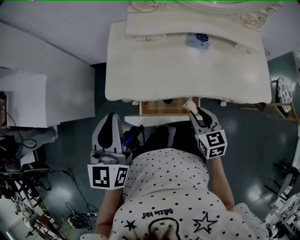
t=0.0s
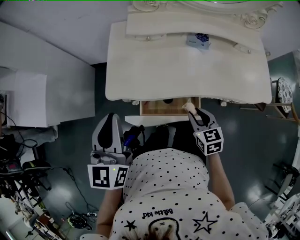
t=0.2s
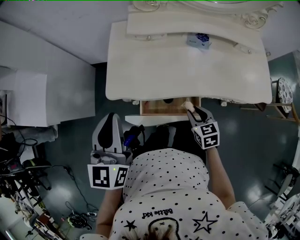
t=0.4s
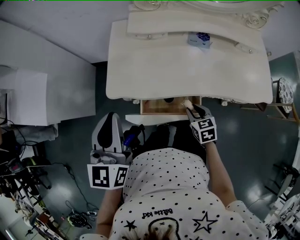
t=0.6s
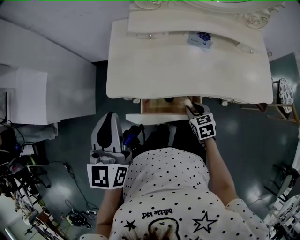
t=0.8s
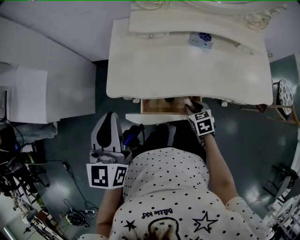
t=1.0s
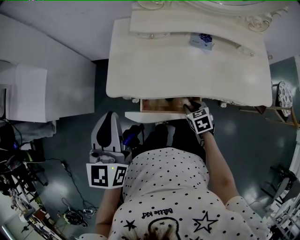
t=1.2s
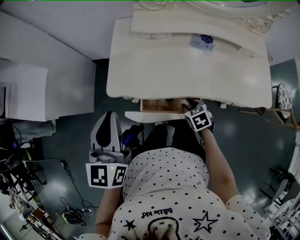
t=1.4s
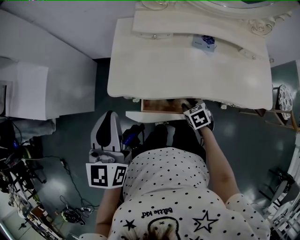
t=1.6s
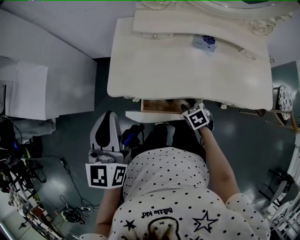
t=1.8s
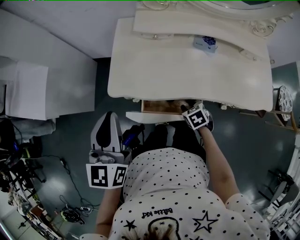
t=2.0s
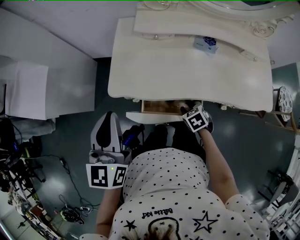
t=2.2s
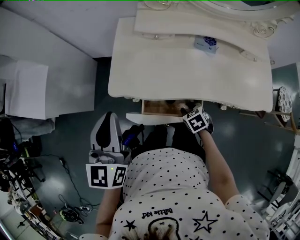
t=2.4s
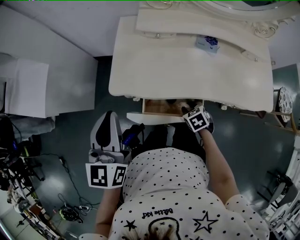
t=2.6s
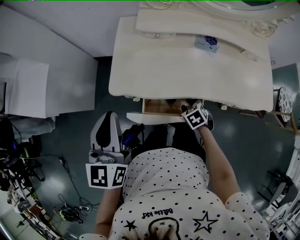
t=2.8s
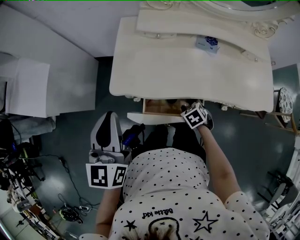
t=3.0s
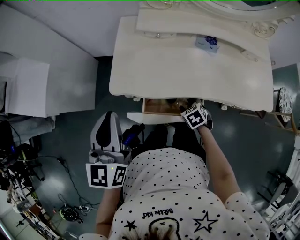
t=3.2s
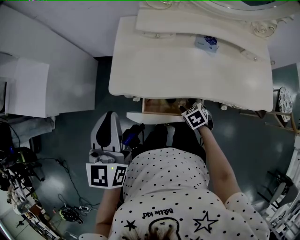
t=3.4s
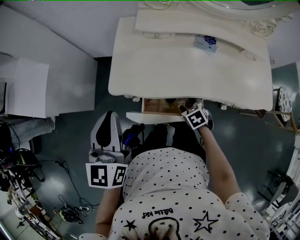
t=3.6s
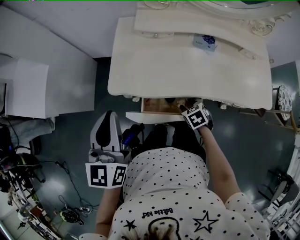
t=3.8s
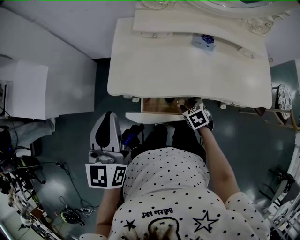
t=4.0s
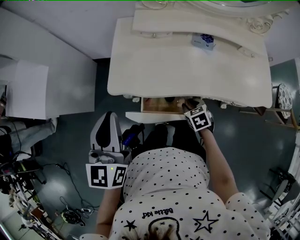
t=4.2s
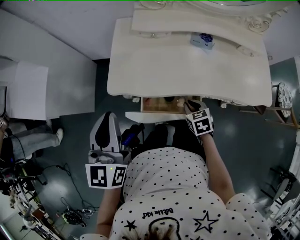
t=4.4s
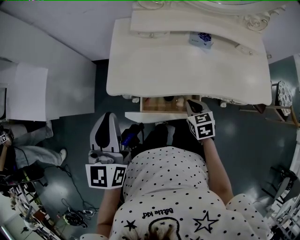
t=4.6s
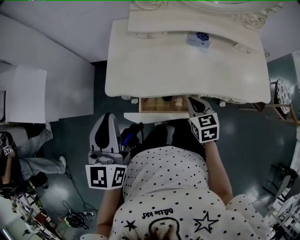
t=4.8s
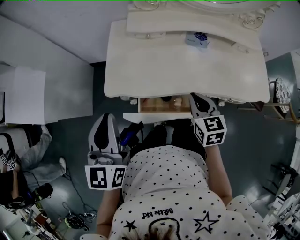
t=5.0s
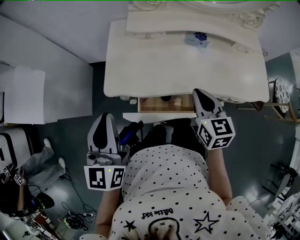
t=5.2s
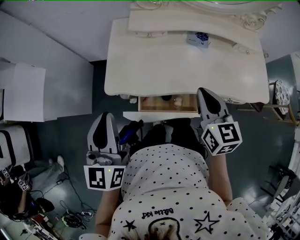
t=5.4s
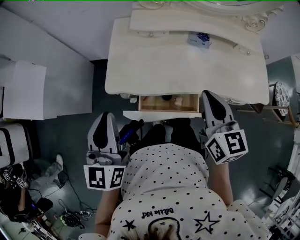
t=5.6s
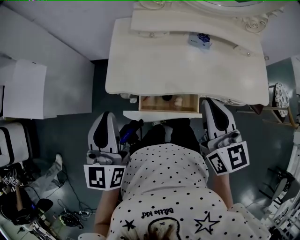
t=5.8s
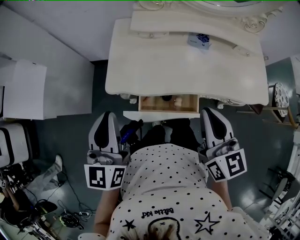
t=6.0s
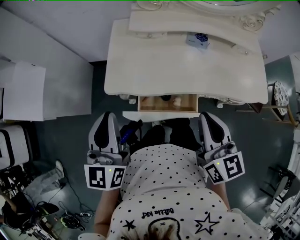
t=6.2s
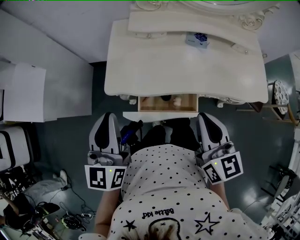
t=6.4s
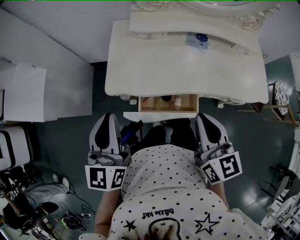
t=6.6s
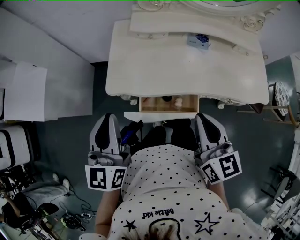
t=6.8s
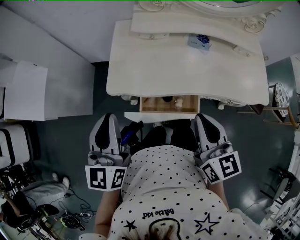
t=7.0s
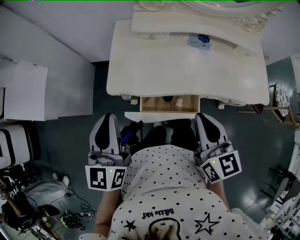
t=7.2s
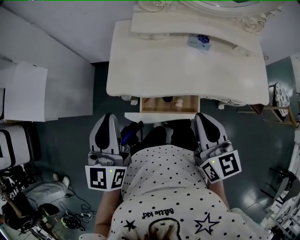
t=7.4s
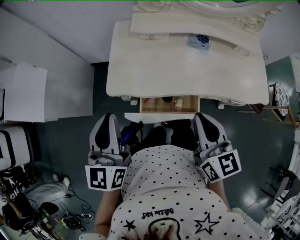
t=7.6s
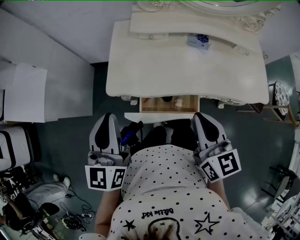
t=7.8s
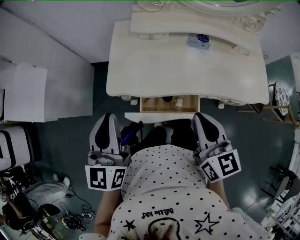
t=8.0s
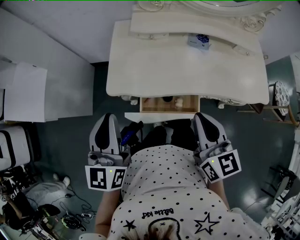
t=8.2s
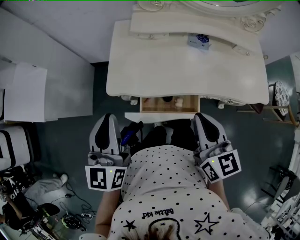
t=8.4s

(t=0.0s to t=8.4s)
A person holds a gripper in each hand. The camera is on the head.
t=0.0s - t=1.4s: The right gripper goes about 10 cm downward, and rotates approximately 30 degrees.
t=1.4s - t=4.2s: The grippers stay close to where they were, moving slightly.
t=4.2s - t=5.6s: The right gripper shifts approximately 30 cm upward, points its fingers about 40 degrees further upward, and closes its fingers.
t=5.6s - t=7.0s: The right gripper travels backward by roughly 5 cm.
t=7.0s - t=8.4s: Both grippers stay put.

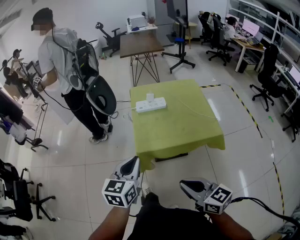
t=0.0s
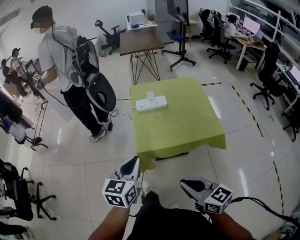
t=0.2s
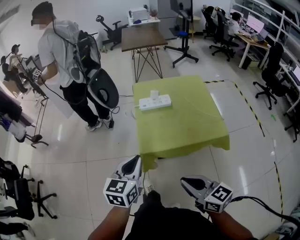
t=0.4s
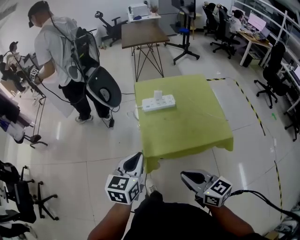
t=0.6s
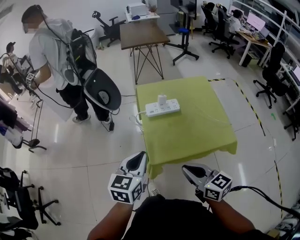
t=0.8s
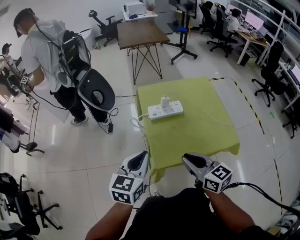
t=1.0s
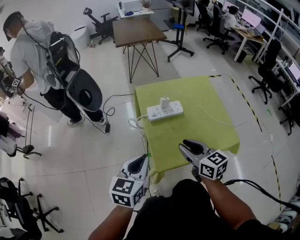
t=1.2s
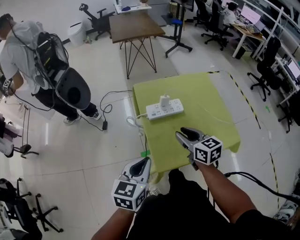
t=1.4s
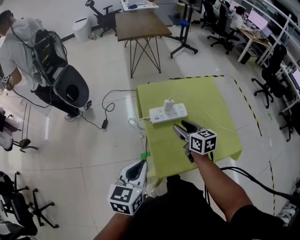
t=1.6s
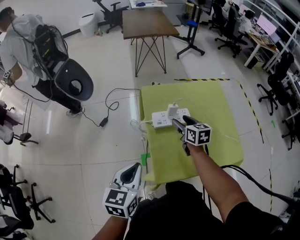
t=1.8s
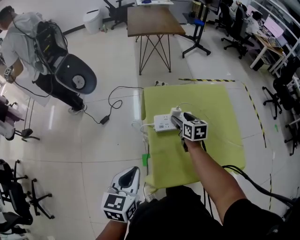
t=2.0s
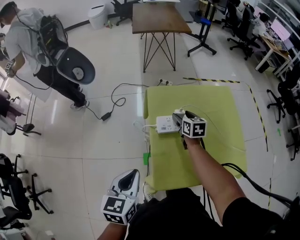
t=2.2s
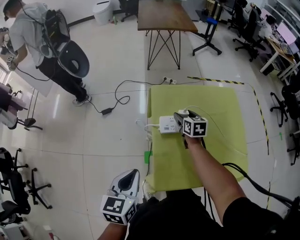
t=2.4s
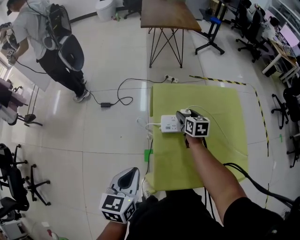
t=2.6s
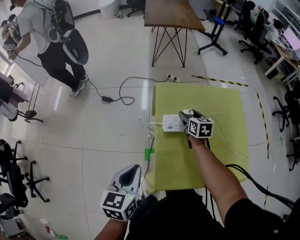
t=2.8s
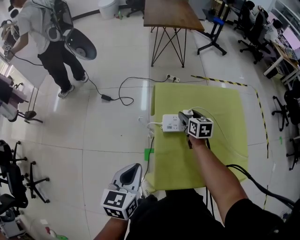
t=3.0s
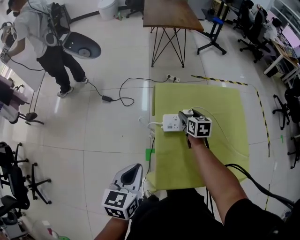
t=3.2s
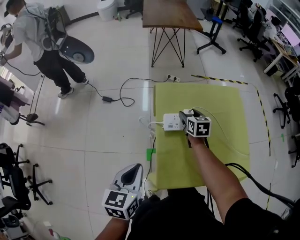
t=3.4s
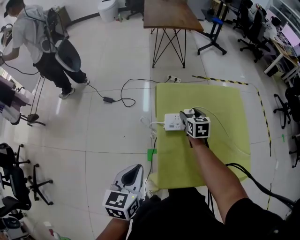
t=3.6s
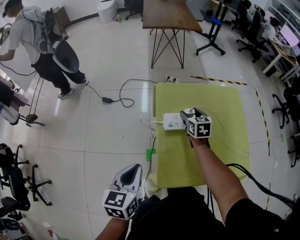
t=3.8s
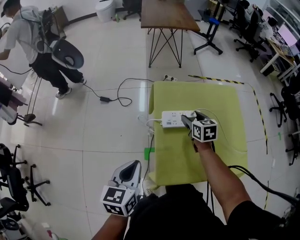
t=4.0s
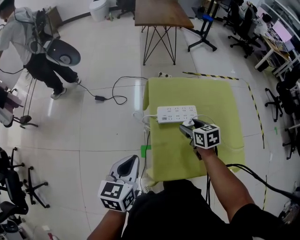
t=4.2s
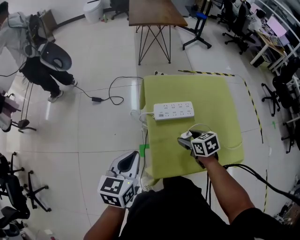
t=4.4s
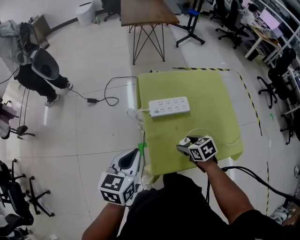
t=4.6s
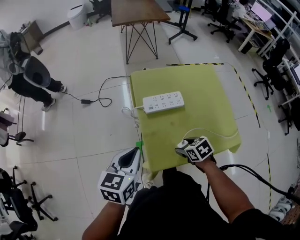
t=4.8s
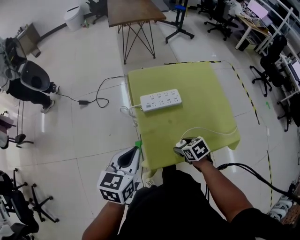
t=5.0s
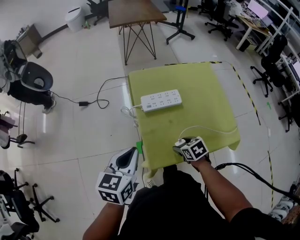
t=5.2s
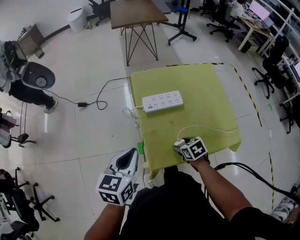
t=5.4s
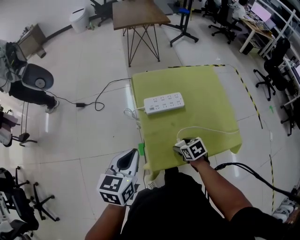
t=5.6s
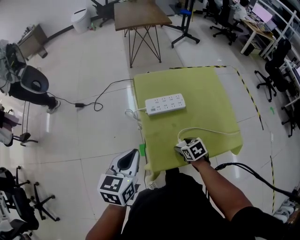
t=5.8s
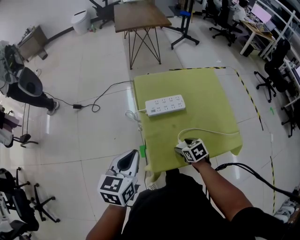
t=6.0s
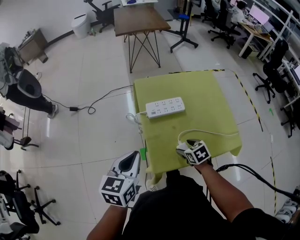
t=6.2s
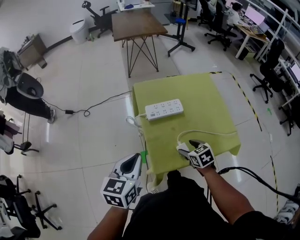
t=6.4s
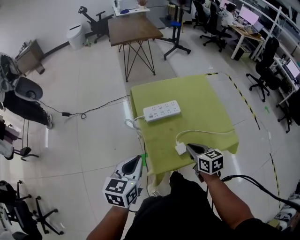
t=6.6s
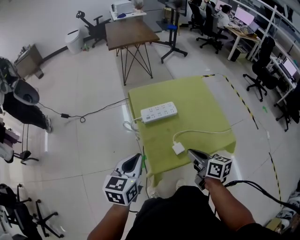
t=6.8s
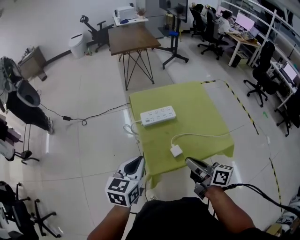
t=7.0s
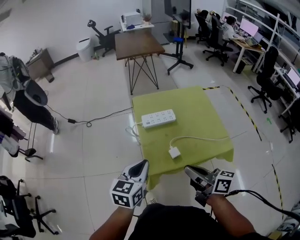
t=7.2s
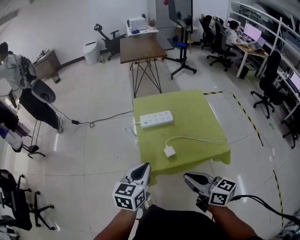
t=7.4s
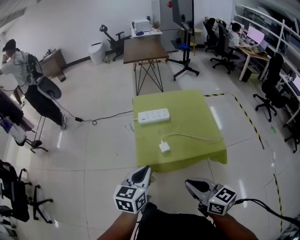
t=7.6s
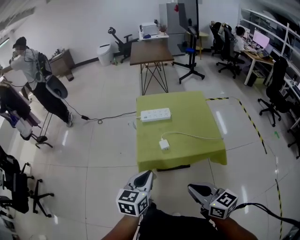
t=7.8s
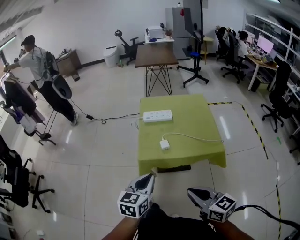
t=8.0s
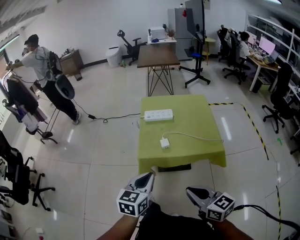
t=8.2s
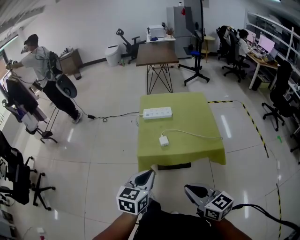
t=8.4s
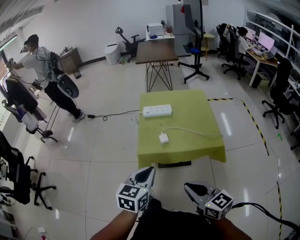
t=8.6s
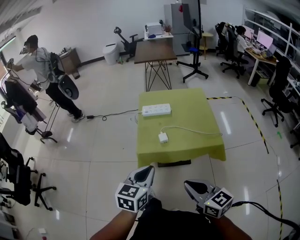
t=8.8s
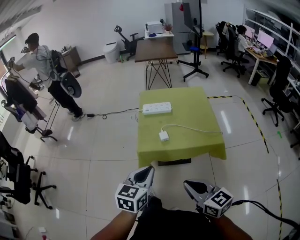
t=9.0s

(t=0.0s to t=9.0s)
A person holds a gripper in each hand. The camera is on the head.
t=0.0s - t=1.6s: The right gripper moves forward, roughly 50 cm, turns by approximately 20 degrees, and opens its fingers, while the left gripper goes about 20 cm forward.
t=1.6s - t=3.0s: The right gripper heads forward and downward, covering approximately 20 cm, while the left gripper travels forward by some 5 cm.
t=3.0s - t=4.4s: The right gripper goes roughly 20 cm backward, and swivels roughly 20 degrees.
t=4.4s - t=6.0s: The right gripper travels backward and downward by some 10 cm.
t=6.0s - t=7.6s: The right gripper goes some 40 cm upward and backward, points its fingers approximately 40 degrees further upward, and closes. The left gripper goes approximately 25 cm backward and to the right.
t=7.6s - t=9.0s: Both grippers travel together backward, roughly 10 cm.

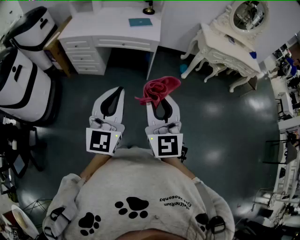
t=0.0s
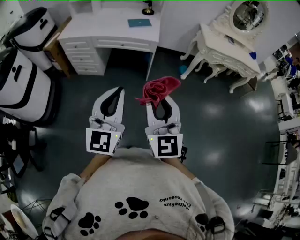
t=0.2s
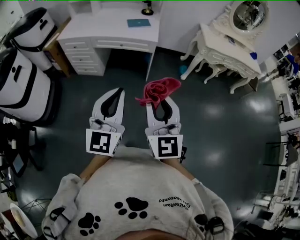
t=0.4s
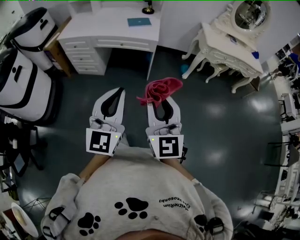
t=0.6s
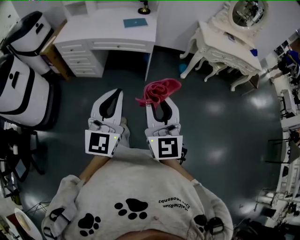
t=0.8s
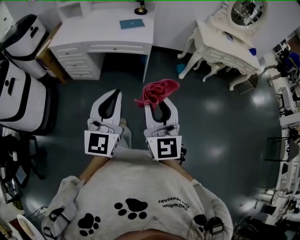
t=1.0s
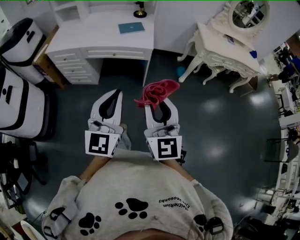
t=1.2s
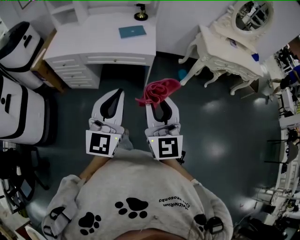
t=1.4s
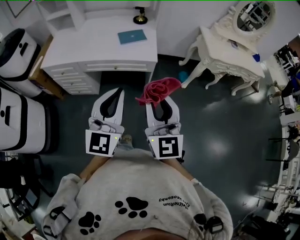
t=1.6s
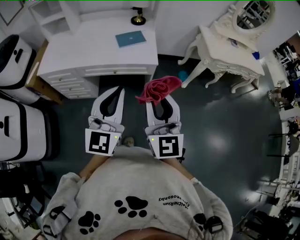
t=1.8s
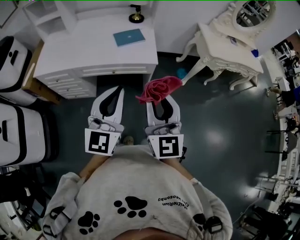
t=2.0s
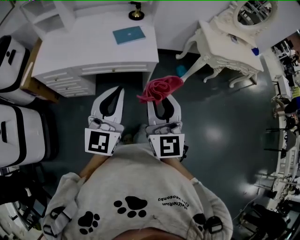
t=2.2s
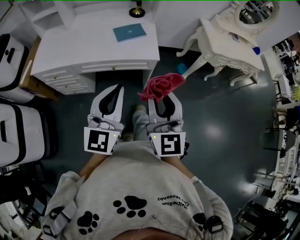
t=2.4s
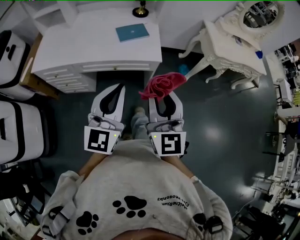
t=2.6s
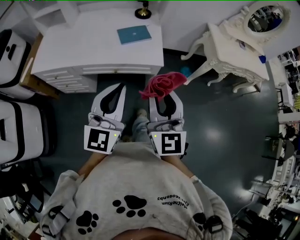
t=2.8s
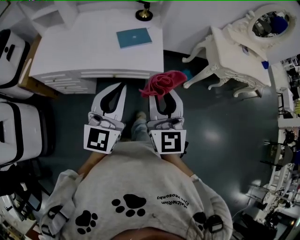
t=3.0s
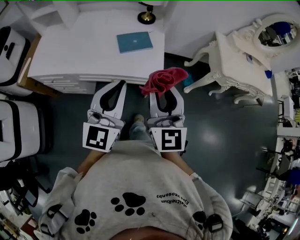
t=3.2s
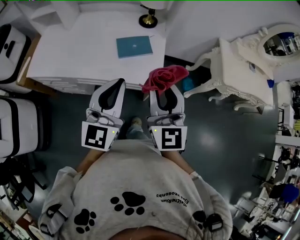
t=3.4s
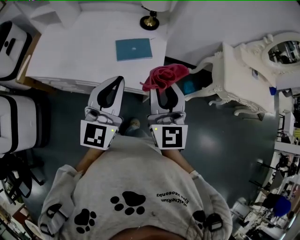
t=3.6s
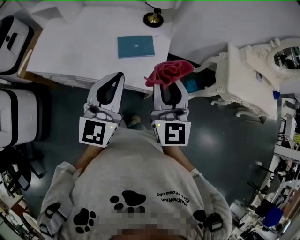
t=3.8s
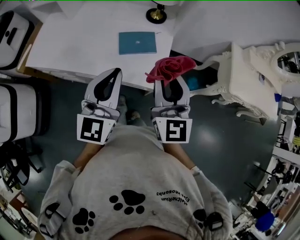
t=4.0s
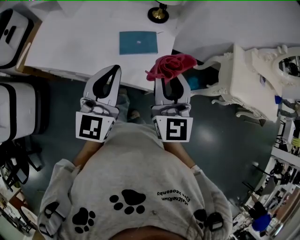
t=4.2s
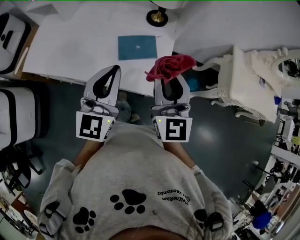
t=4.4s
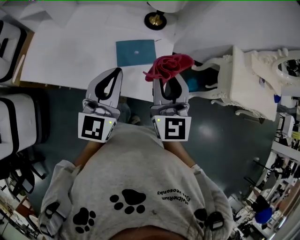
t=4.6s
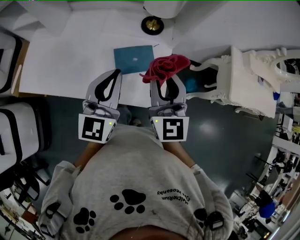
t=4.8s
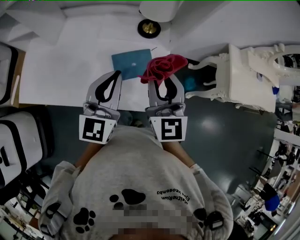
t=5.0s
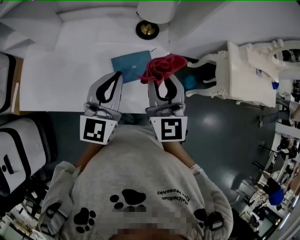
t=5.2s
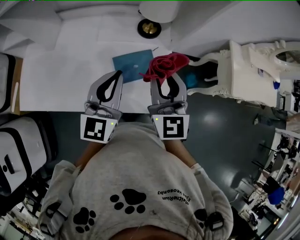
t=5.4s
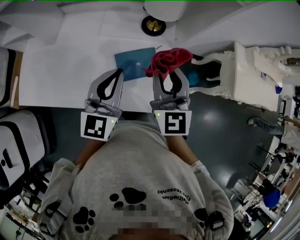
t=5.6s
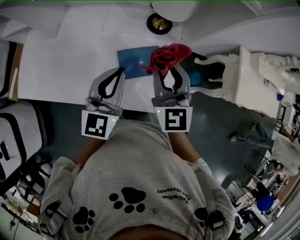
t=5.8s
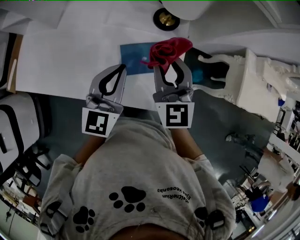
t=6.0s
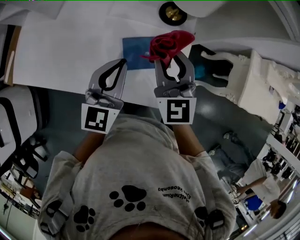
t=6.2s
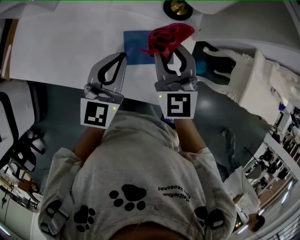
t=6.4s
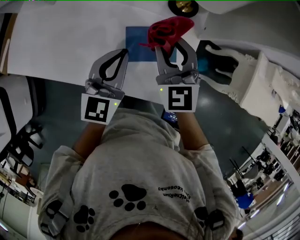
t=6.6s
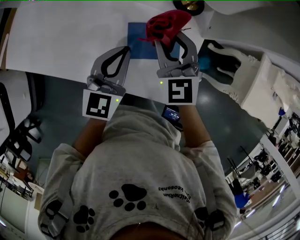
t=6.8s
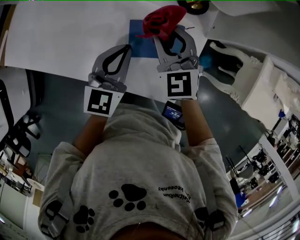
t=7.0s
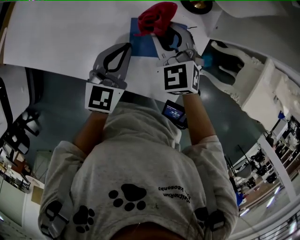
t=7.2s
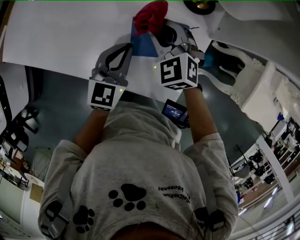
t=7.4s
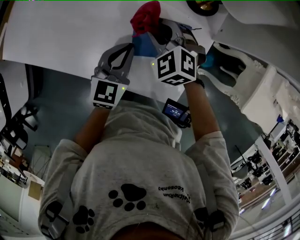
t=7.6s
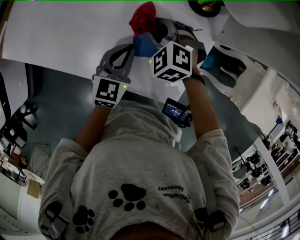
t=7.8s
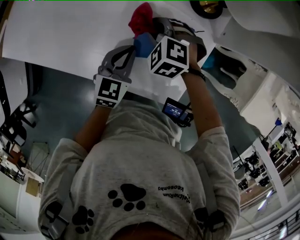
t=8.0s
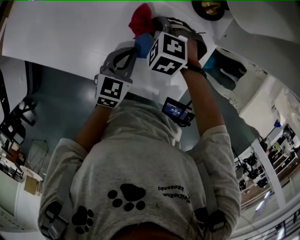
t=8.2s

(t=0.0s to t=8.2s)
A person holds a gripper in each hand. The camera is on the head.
t=0.0s - t=1.6s: The grippers both shift forward by about 25 cm.
t=1.6s - t=3.2s: Both grippers move forward, about 25 cm.
t=3.2s - t=5.0s: Both grippers travel together forward, approximately 25 cm.
t=5.0s - t=6.6s: The right gripper heads downward, forward and to the left, covering about 15 cm, and rotates about 30 degrees. Meanwhile the left gripper moves downward and forward, about 15 cm.
t=6.6s - t=8.2s: The grippers both shift downward by about 15 cm. The right gripper tips its fingers downward by roughly 50 degrees; the left gripper changes its angle by approximately 20 degrees.
